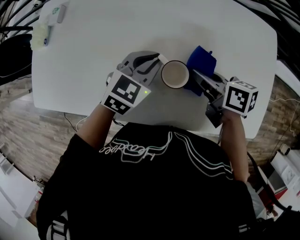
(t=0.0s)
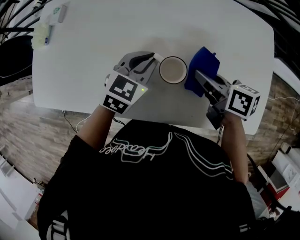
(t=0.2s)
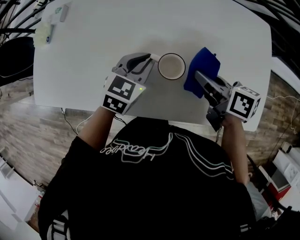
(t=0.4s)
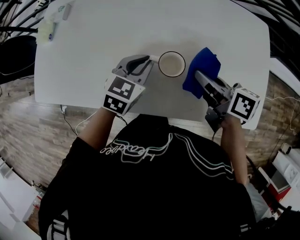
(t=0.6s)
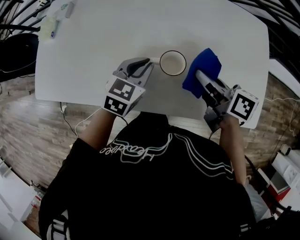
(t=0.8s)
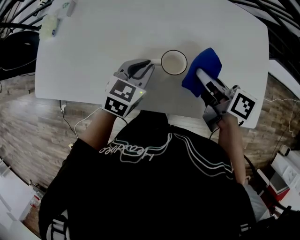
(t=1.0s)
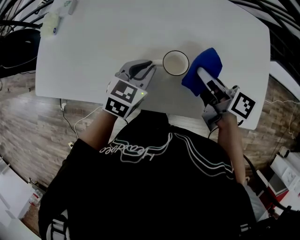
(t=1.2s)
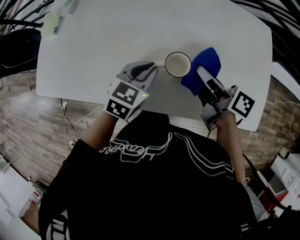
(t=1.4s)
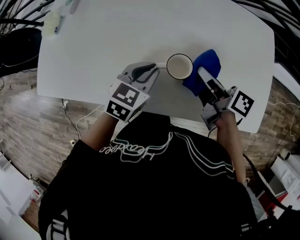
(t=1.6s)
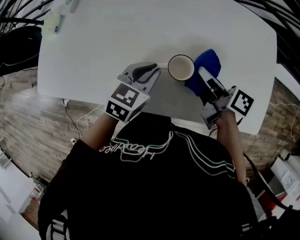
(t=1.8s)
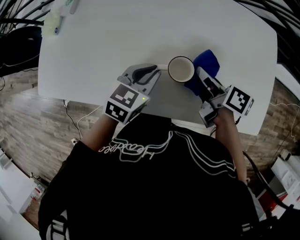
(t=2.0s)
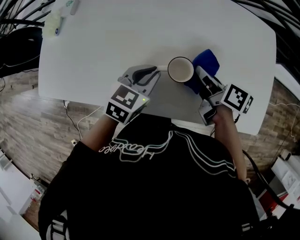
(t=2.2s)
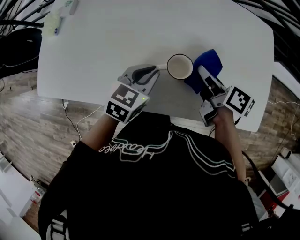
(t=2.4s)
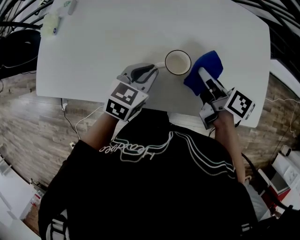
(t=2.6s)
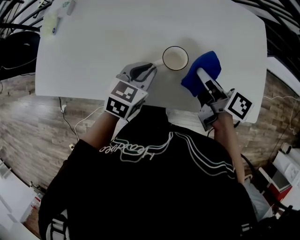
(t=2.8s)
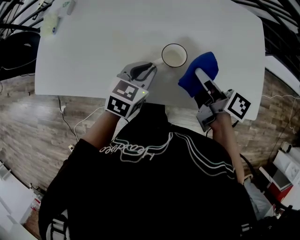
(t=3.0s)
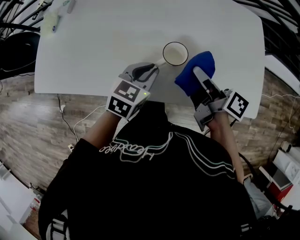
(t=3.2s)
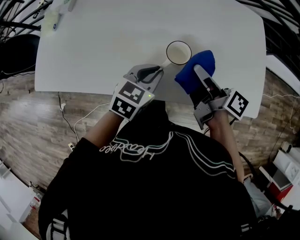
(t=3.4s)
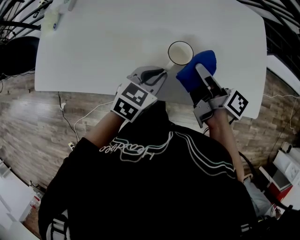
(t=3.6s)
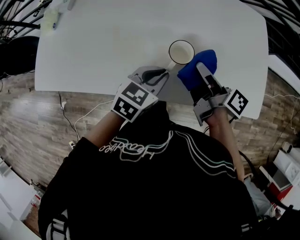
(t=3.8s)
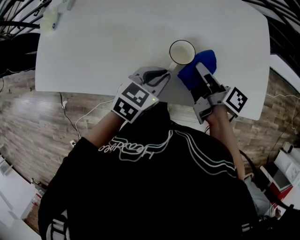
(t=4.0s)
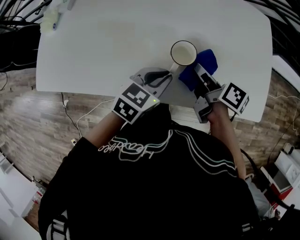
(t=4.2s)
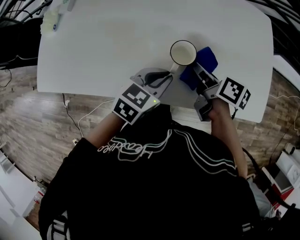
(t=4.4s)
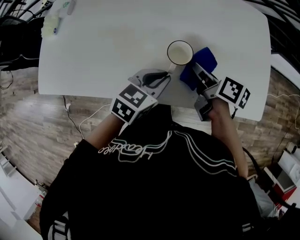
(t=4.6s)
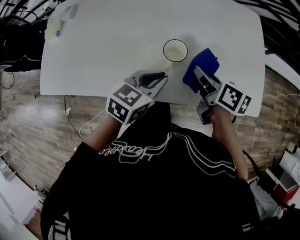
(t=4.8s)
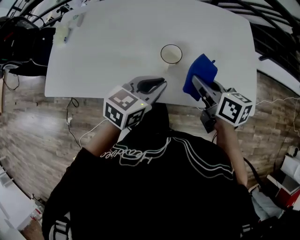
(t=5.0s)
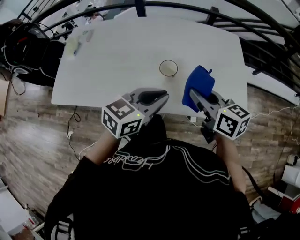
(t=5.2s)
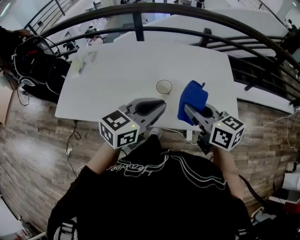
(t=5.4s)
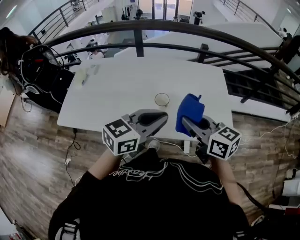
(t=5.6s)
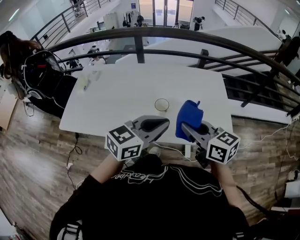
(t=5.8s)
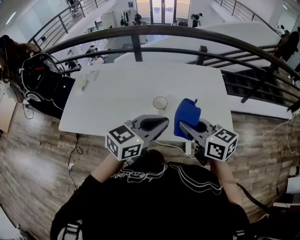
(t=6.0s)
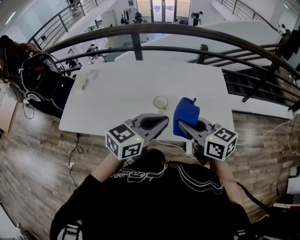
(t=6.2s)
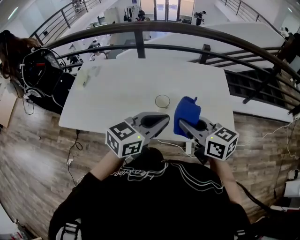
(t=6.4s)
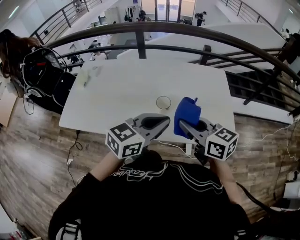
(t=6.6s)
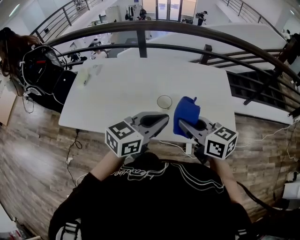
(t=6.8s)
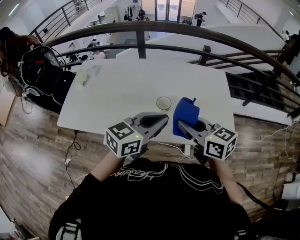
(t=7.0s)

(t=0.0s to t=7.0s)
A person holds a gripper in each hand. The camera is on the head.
t=0.0s - t=1.4s: The left gripper travels backward by about 10 cm. Meanwhile the right gripper shifts some 10 cm backward and upward, and rotates about 30 degrees.
t=1.4s - t=2.8s: There are only small adjustments of the grippers.
t=2.8s - t=4.2s: The left gripper moves to the right, some 5 cm.
t=4.2s - t=5.6s: The grippers both shift upward and backward by some 30 cm. The left gripper turns by roughly 30 degrees. The right gripper rotates around the line of its fingers by roughly 50 degrees, counterclockwise from behind.
t=5.6s - t=7.0s: There are only small adjustments of the grippers.

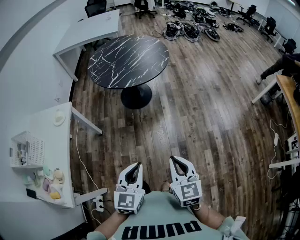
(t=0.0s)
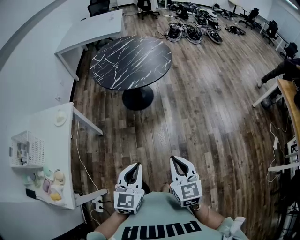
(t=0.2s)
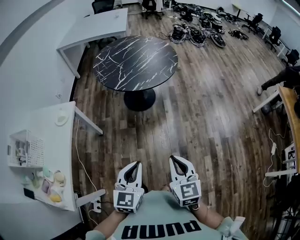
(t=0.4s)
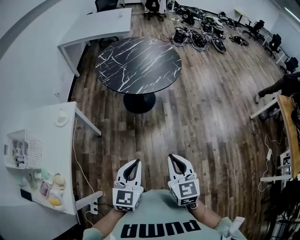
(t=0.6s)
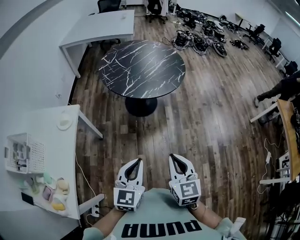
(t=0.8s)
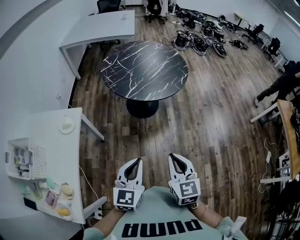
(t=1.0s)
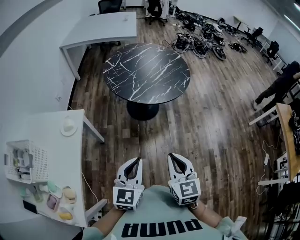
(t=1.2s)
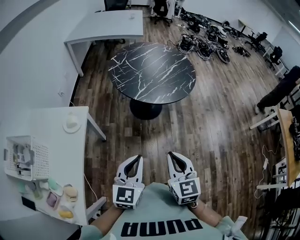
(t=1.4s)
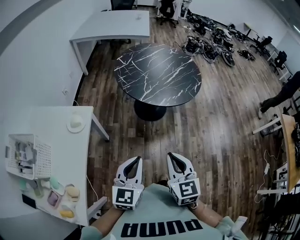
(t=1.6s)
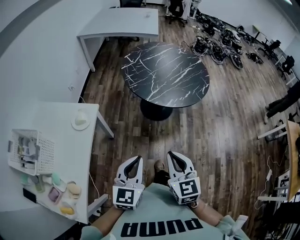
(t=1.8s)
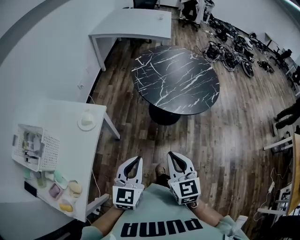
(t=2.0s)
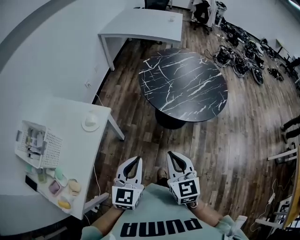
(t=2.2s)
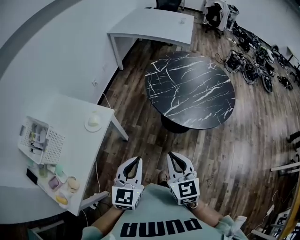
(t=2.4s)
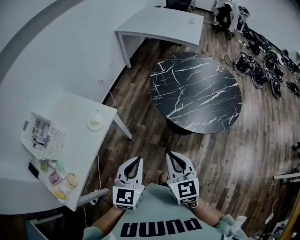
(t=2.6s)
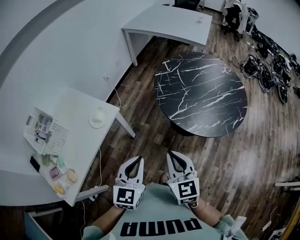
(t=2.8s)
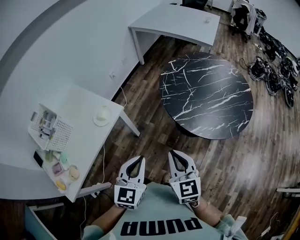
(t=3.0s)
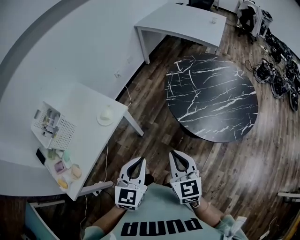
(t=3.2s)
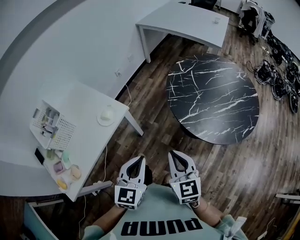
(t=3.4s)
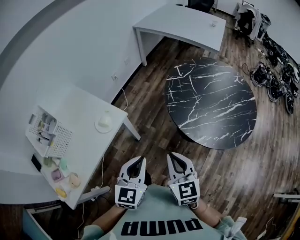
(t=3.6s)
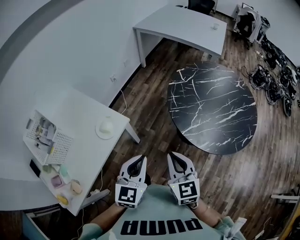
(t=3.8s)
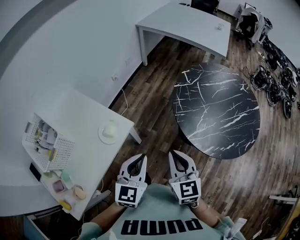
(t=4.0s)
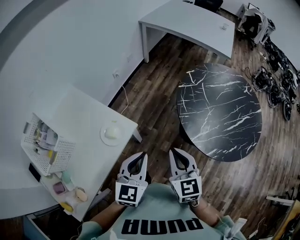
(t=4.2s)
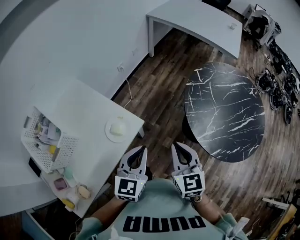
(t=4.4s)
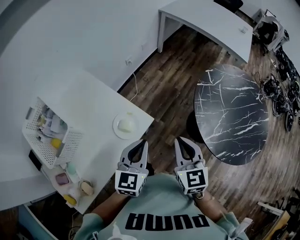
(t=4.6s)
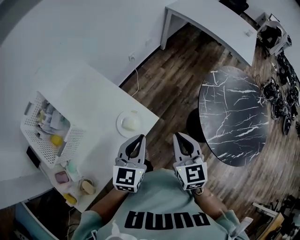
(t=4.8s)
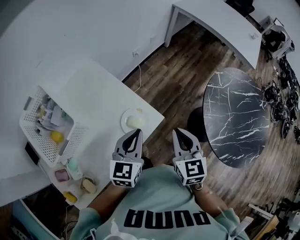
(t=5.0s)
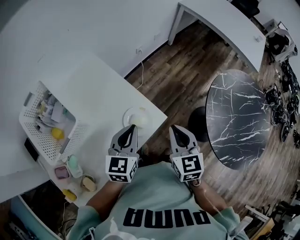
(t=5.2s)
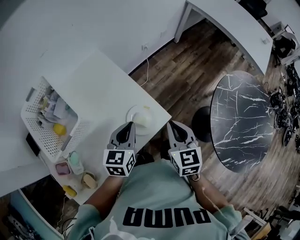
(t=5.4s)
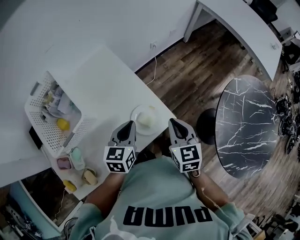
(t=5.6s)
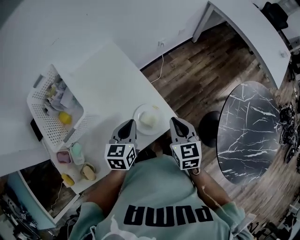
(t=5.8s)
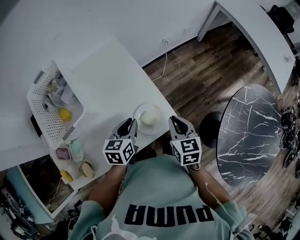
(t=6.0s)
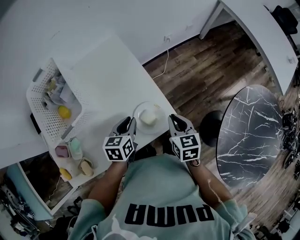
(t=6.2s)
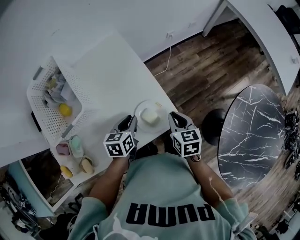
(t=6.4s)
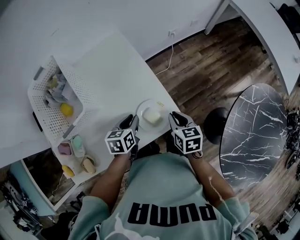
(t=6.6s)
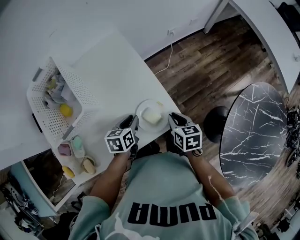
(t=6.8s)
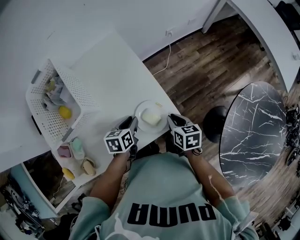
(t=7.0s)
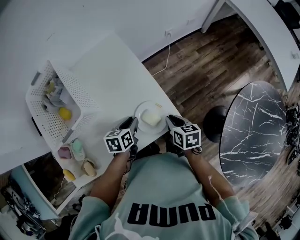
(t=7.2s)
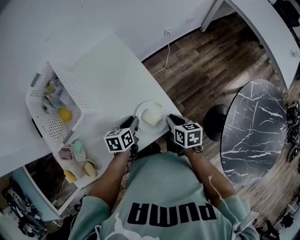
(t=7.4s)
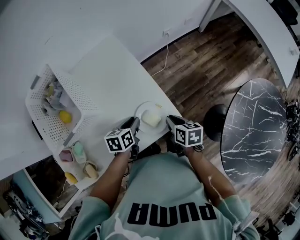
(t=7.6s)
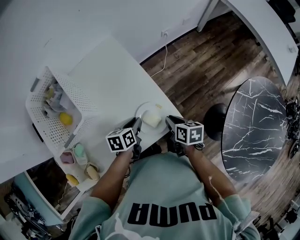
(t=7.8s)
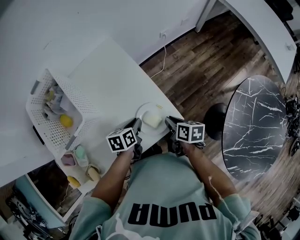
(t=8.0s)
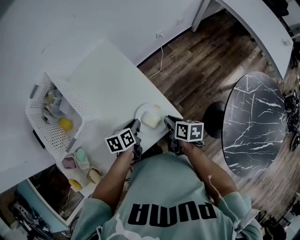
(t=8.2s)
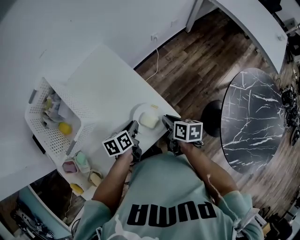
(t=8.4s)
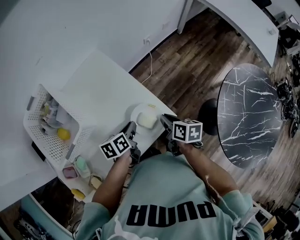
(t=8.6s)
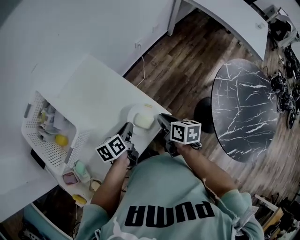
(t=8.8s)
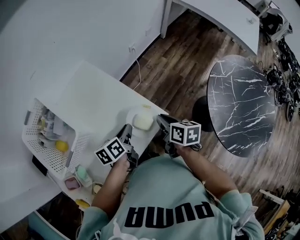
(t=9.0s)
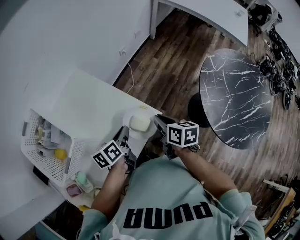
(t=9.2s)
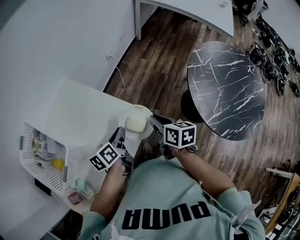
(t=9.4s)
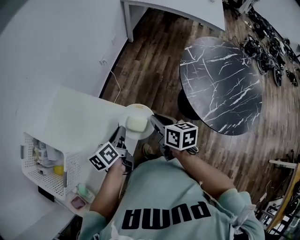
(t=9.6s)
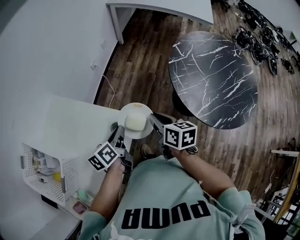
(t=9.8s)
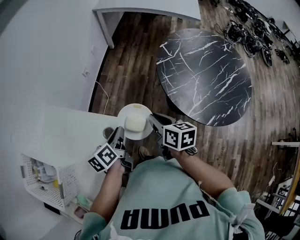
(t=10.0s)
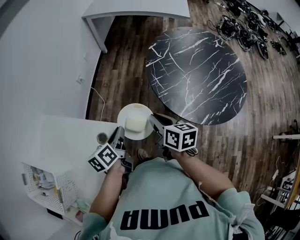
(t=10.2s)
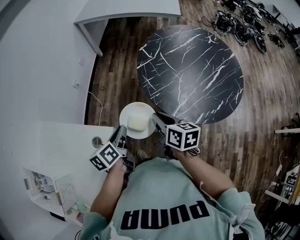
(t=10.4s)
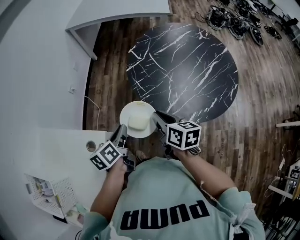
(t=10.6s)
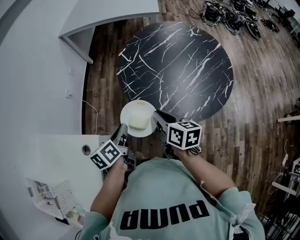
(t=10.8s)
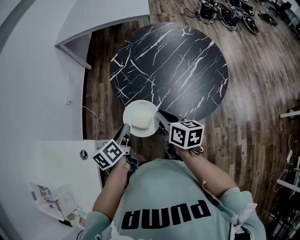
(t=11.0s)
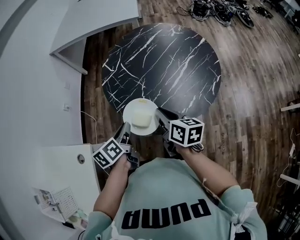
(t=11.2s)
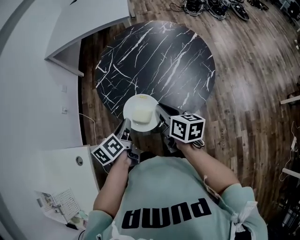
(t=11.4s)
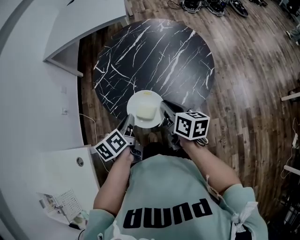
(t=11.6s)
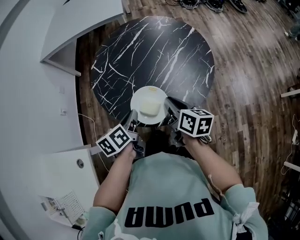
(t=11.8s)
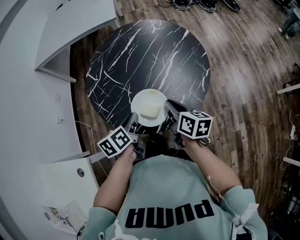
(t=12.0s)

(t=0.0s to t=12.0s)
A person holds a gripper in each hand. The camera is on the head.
t=0.0s - t=1.6s: The two grippers go approximately 30 cm to the left and forward.
t=1.6s - t=3.0s: The right gripper changes place by about 20 cm, and rotates some 30 degrees, while the left gripper changes place by some 15 cm, and changes its angle by about 30 degrees.
t=3.0s - t=4.4s: The grippers both shift forward and to the left by about 25 cm.
t=4.4s - t=6.0s: The right gripper ends up some 25 cm from where it was, and turns by roughly 30 degrees. The left gripper moves about 30 cm, and swivels roughly 40 degrees.
t=6.0s - t=7.6s: The two grippers go roughly 10 cm downward. The right gripper changes its angle by approximately 30 degrees.
t=7.6s - t=9.0s: The grippers both shift upward by about 10 cm. The right gripper changes its angle by approximately 20 degrees.
t=9.0s - t=10.4s: The right gripper changes place by some 30 cm, and turns by approximately 30 degrees; the left gripper changes place by roughly 30 cm, and rotates some 30 degrees.
t=10.4s - t=12.0s: The two grippers go roughly 35 cm to the right. The left gripper changes its angle by some 20 degrees. Meanwhile the right gripper turns by about 20 degrees.

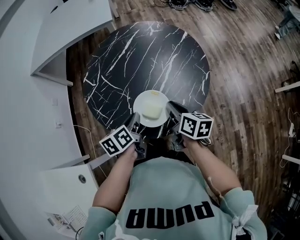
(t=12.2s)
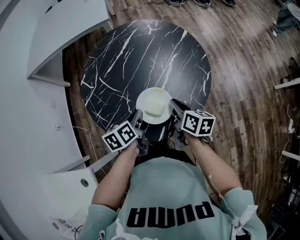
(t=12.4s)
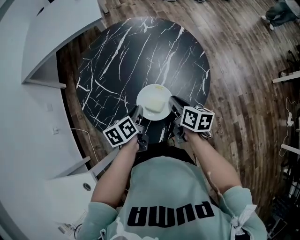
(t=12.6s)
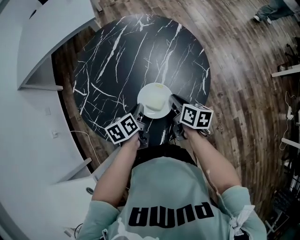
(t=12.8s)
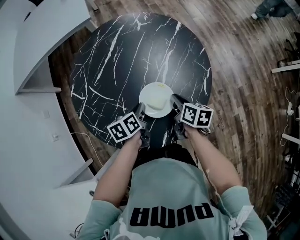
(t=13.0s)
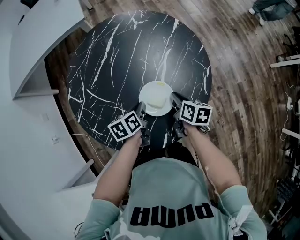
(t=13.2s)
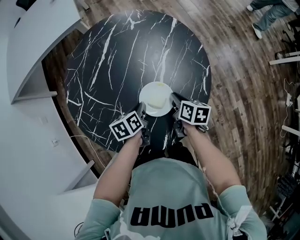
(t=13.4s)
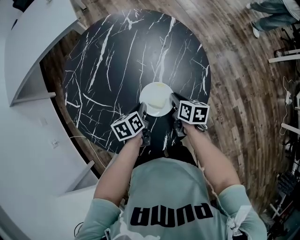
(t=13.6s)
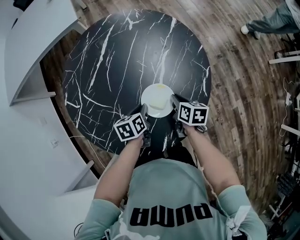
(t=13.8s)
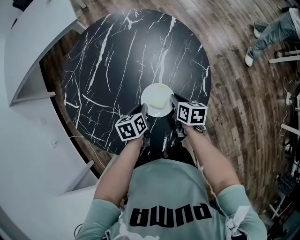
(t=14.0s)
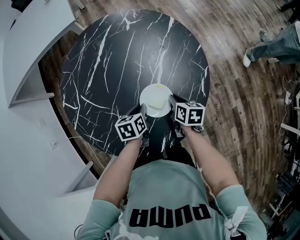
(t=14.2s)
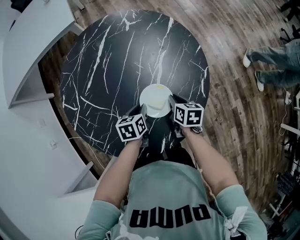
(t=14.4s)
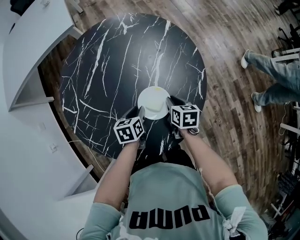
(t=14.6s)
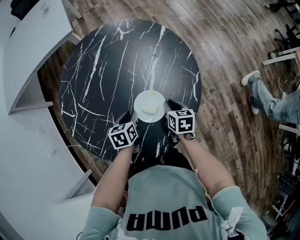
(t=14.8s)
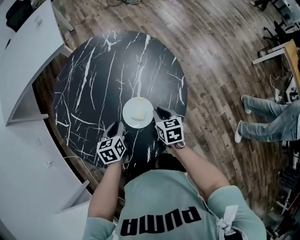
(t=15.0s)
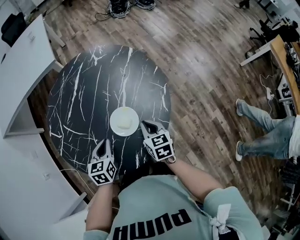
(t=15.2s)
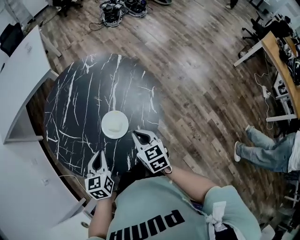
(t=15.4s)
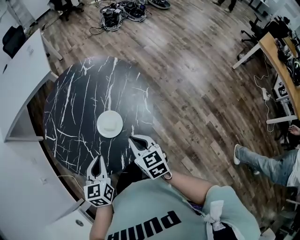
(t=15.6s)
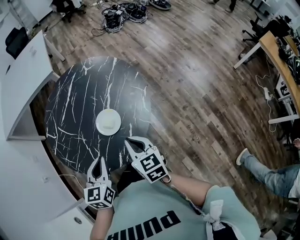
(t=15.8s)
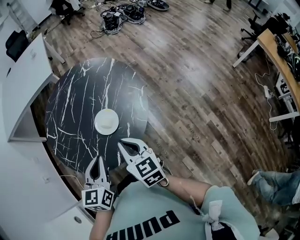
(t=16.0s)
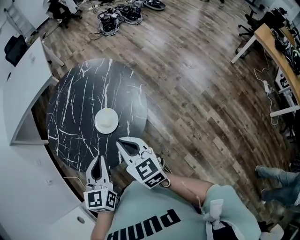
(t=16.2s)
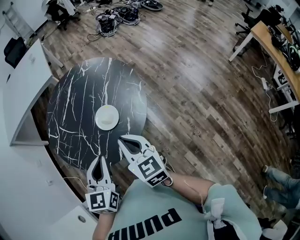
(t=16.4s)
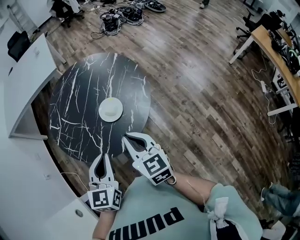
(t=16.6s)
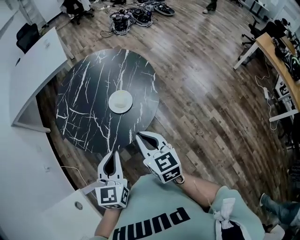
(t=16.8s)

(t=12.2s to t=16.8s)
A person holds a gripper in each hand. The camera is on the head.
t=12.2s - t=13.8s: Both grippers move downward and forward, about 20 cm. The left gripper rotates about 30 degrees. The right gripper turns by approximately 20 degrees.
t=13.8s - t=15.2s: The two grippers go some 10 cm upward. The left gripper changes its angle by about 30 degrees. The right gripper rotates approximately 30 degrees.
t=15.2s - t=16.8s: The grippers both shift backward and upward by about 30 cm. The left gripper swivels about 20 degrees, while the right gripper swivels approximately 20 degrees.
